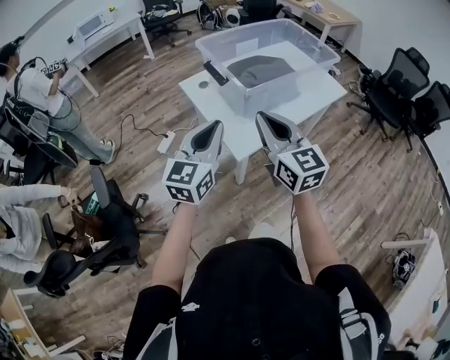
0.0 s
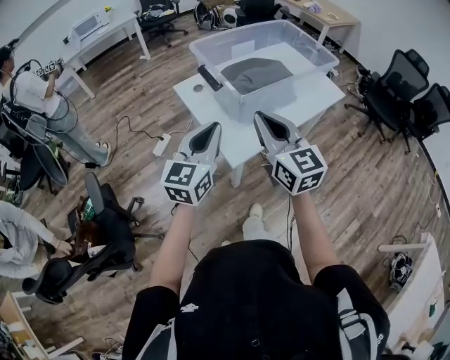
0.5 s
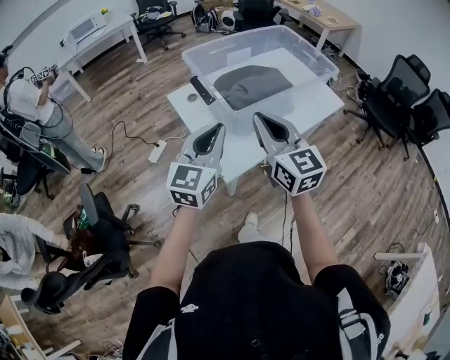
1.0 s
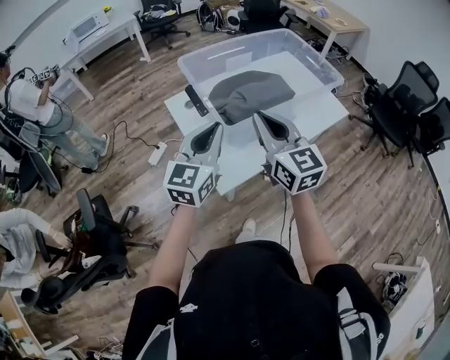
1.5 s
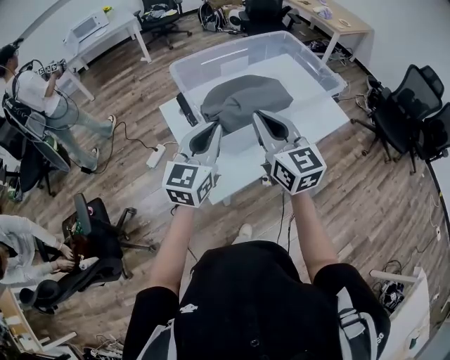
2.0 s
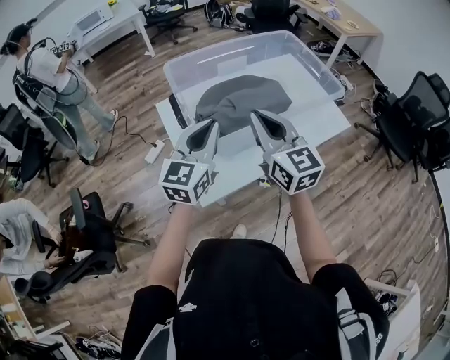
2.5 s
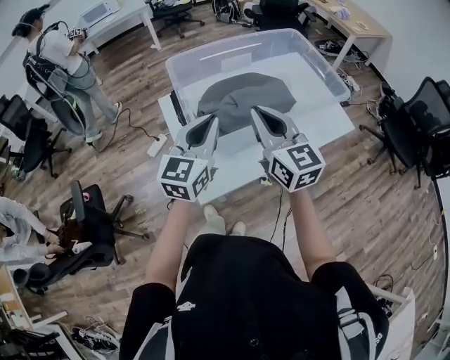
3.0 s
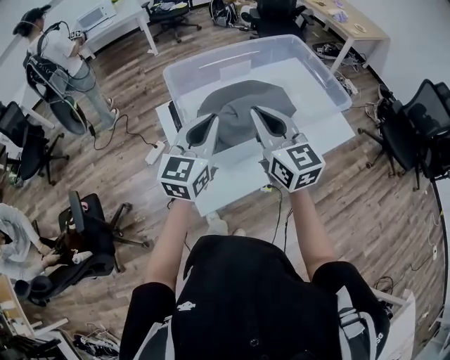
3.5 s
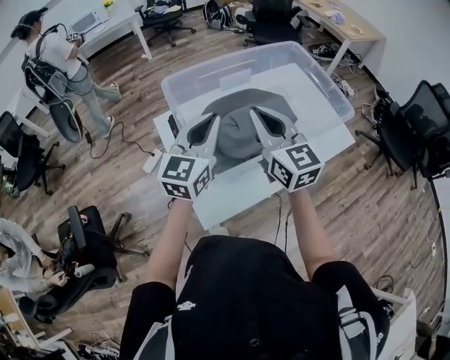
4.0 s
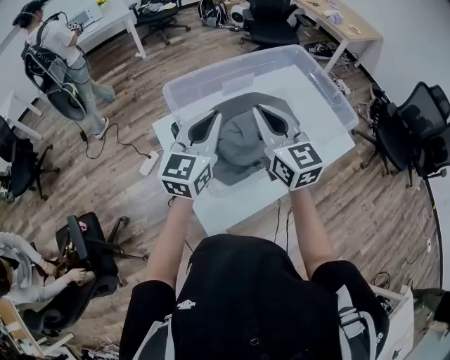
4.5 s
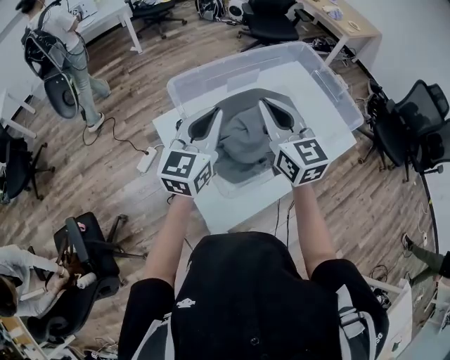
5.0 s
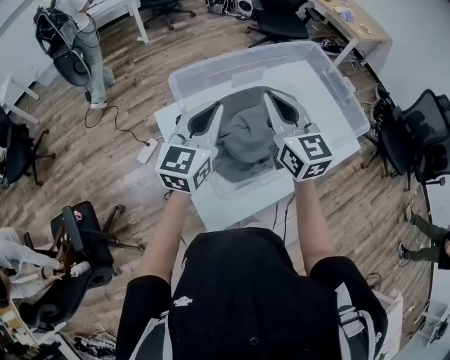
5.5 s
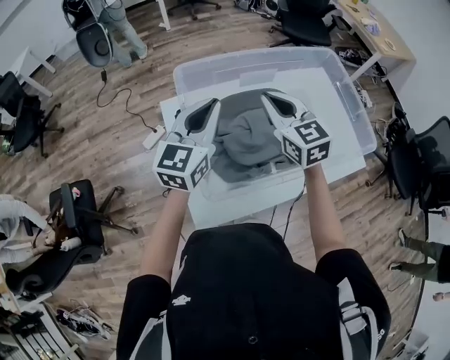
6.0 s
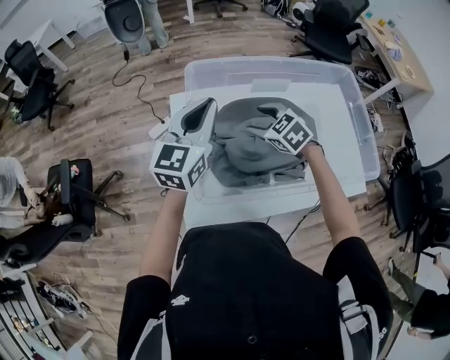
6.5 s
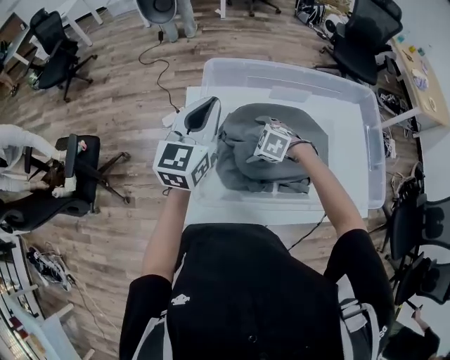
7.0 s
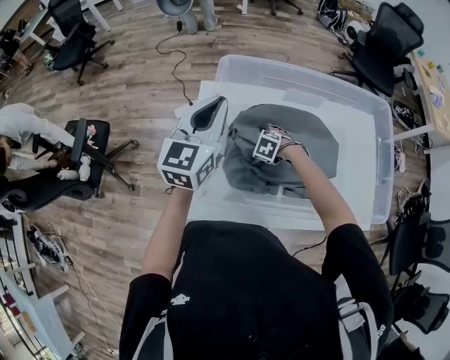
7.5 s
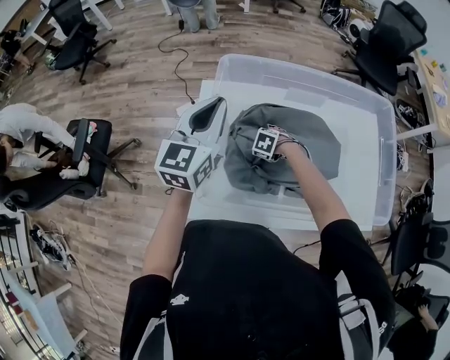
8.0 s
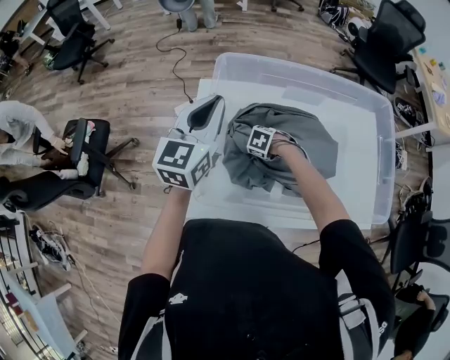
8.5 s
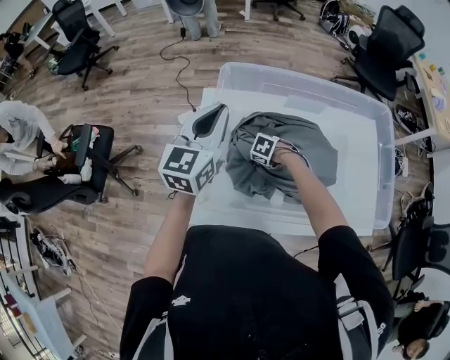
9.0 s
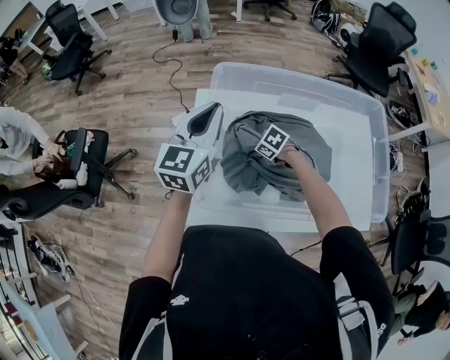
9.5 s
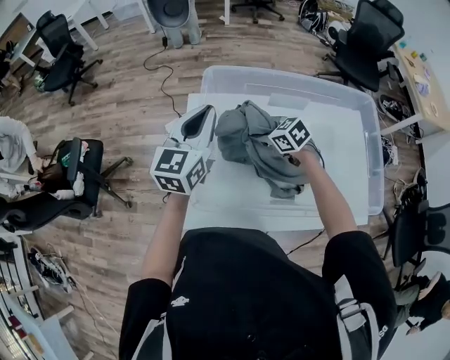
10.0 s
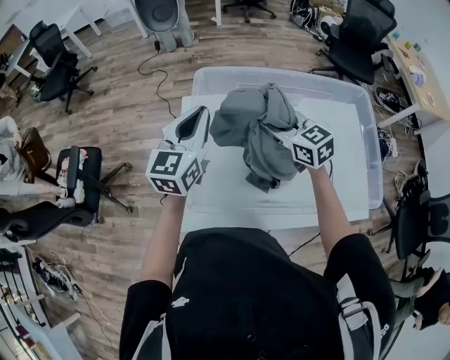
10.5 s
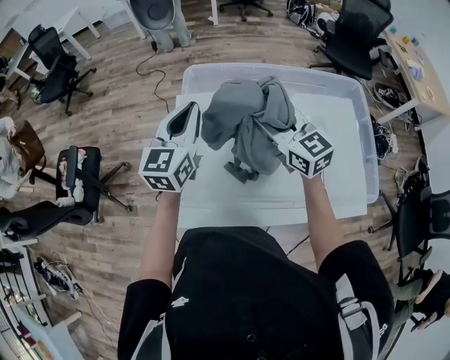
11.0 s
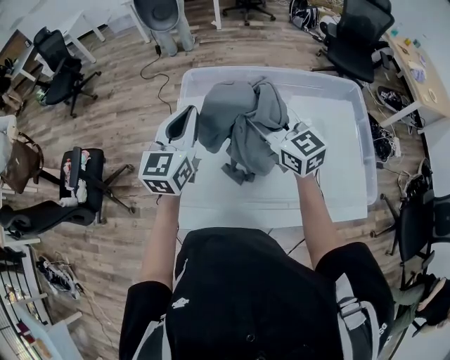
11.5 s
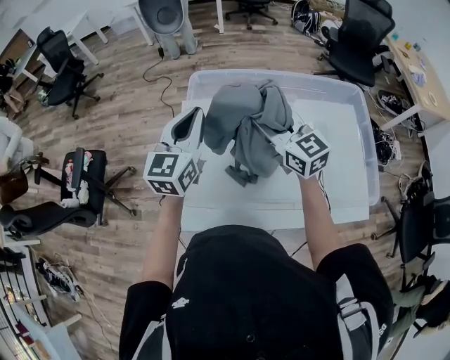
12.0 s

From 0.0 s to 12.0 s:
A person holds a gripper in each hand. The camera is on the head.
From 0.0 s to 2.0 s: Both grippers travel together forward and to the right, about 25 cm.
From 2.0 s to 4.0 s: The grippers both shift forward by some 15 cm.
From 4.0 s to 6.0 s: The right gripper shifts about 15 cm forward and downward, while the left gripper moves forward, approximately 10 cm.
From 6.0 s to 8.0 s: The right gripper shifts about 40 cm downward, tilts its fingers roughly 60 degrees downward, and opens up. The left gripper ends up roughly 5 cm from where it was, and swivels roughly 20 degrees.
From 8.0 s to 10.0 s: The right gripper moves upward, roughly 20 cm, tips its fingers upward by roughly 30 degrees, and closes its fingers.
From 10.0 s to 12.0 s: The right gripper shifts about 20 cm upward, and tips its fingers upward by about 40 degrees.

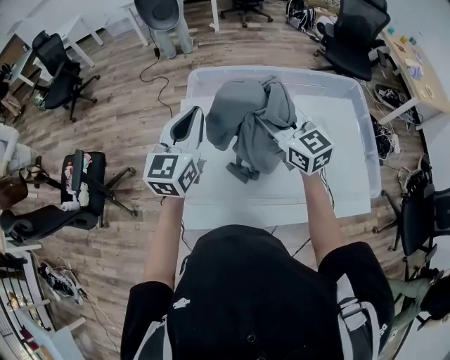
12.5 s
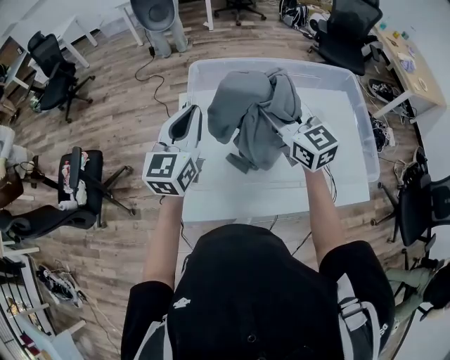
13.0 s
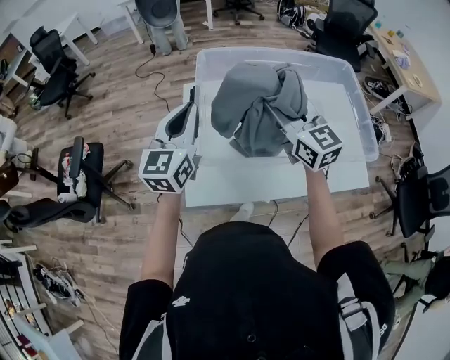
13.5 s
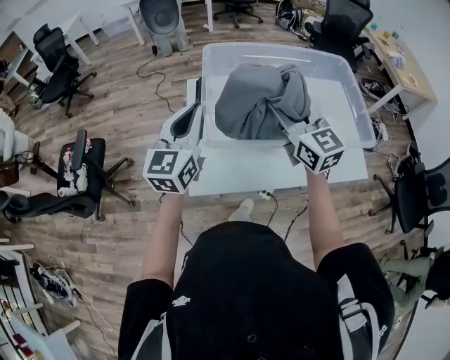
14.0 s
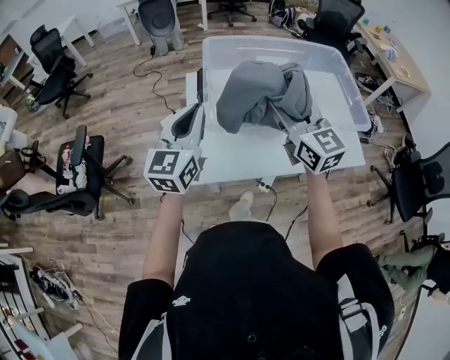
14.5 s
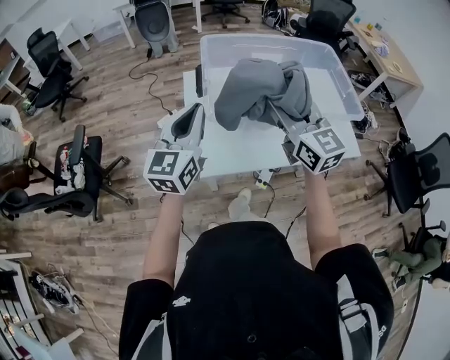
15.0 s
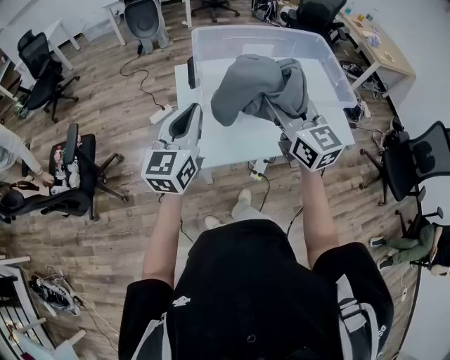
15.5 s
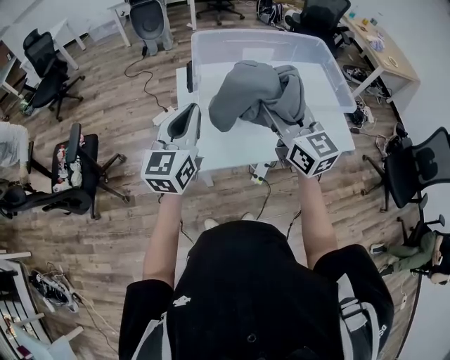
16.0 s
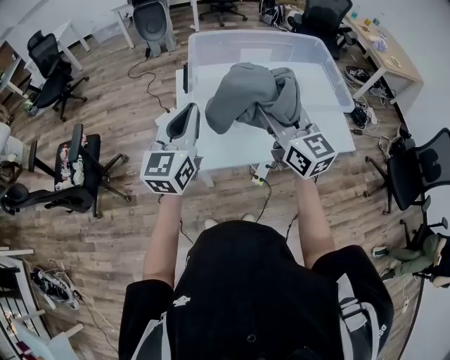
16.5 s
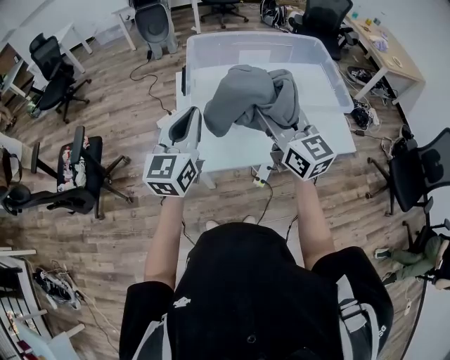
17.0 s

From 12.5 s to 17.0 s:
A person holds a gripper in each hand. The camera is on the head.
From 12.5 s to 14.5 s: The right gripper heads backward, covering roughly 20 cm. Meanwhile the left gripper goes about 20 cm backward and to the left.
From 14.5 s to 17.0 s: The grippers both shift backward by some 5 cm.

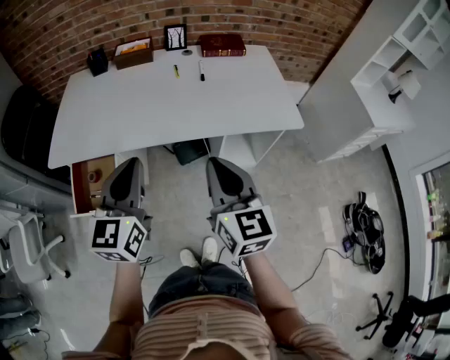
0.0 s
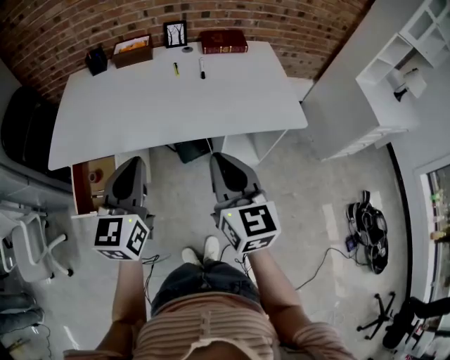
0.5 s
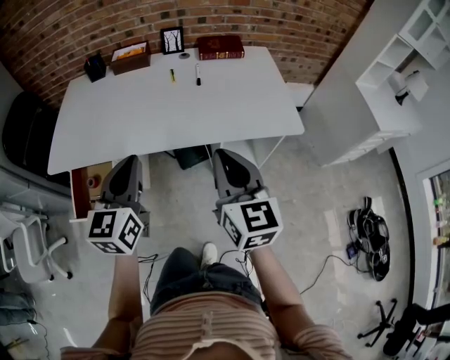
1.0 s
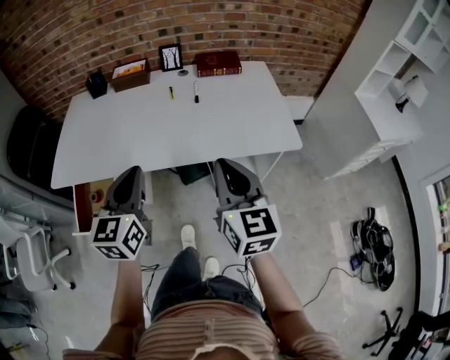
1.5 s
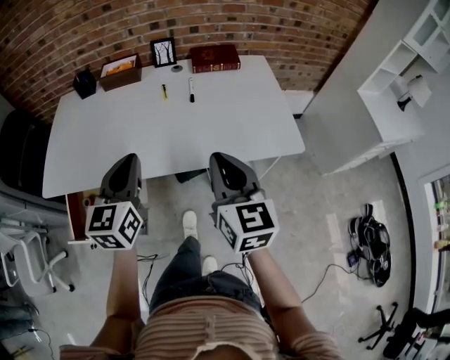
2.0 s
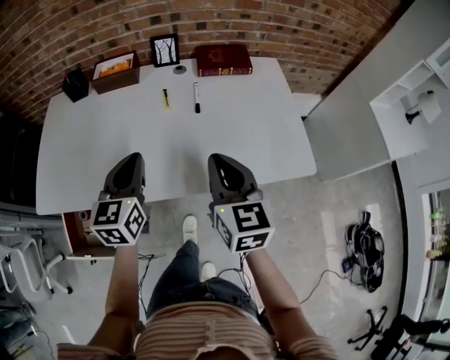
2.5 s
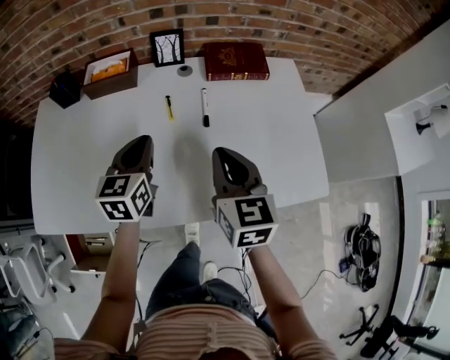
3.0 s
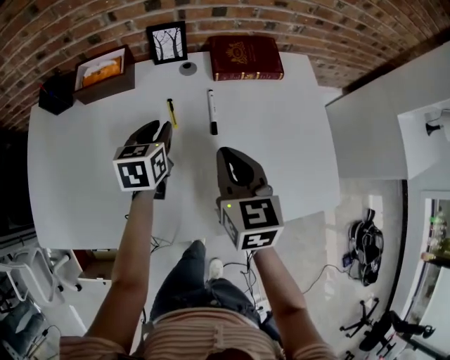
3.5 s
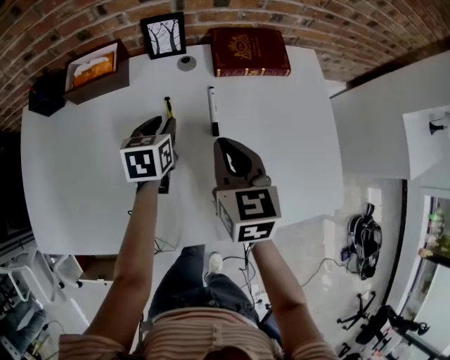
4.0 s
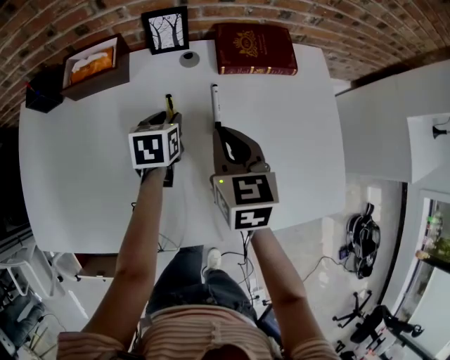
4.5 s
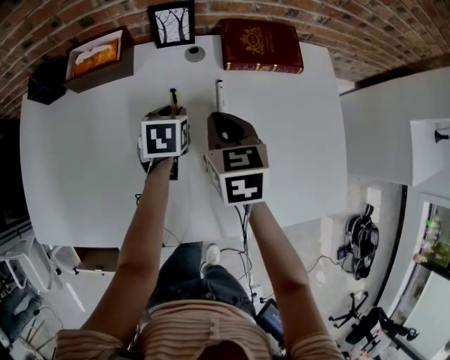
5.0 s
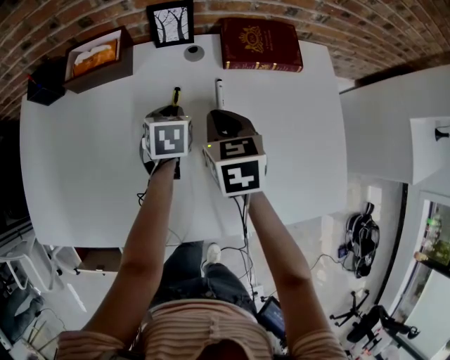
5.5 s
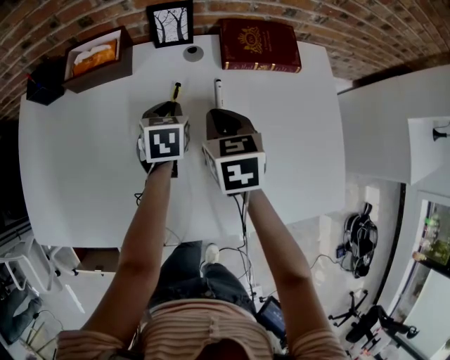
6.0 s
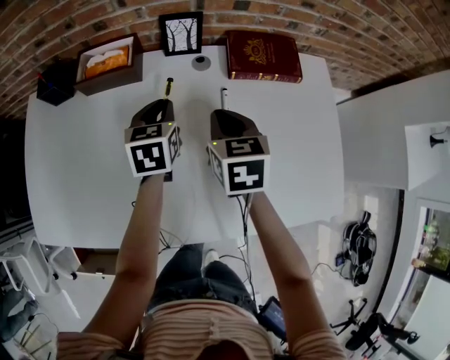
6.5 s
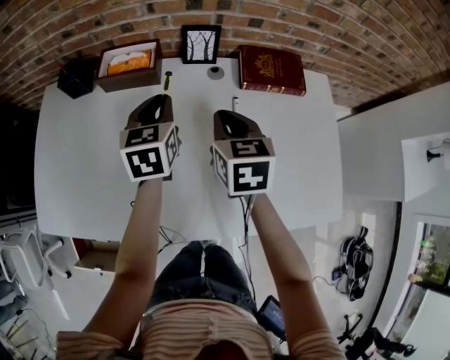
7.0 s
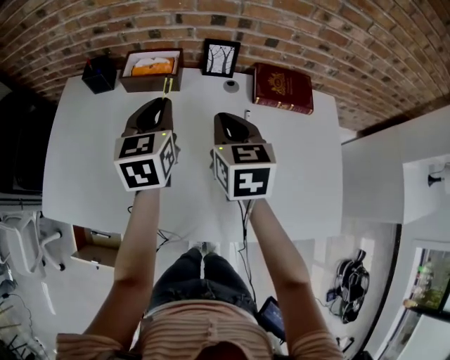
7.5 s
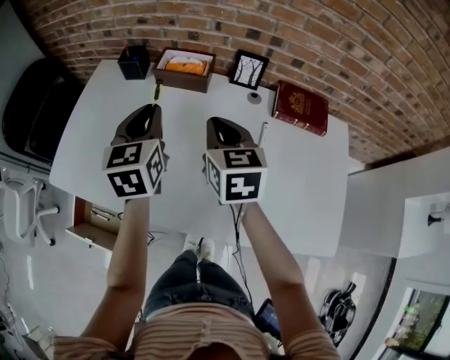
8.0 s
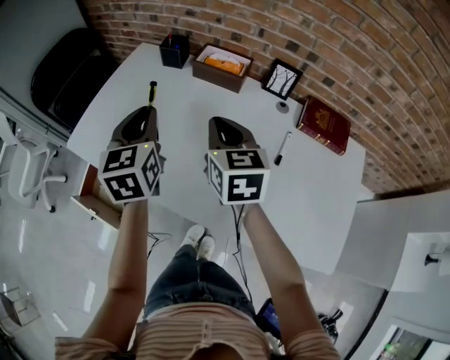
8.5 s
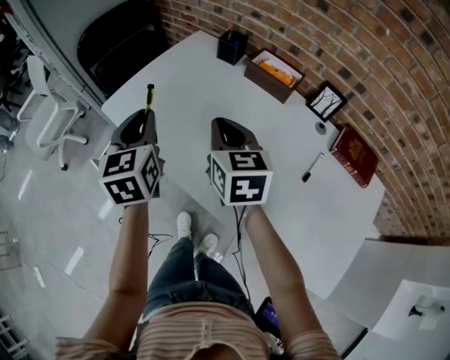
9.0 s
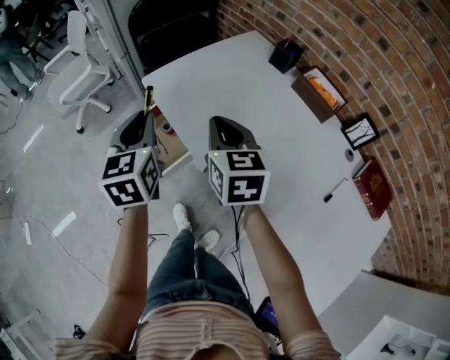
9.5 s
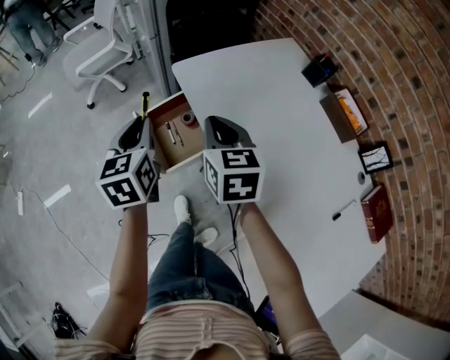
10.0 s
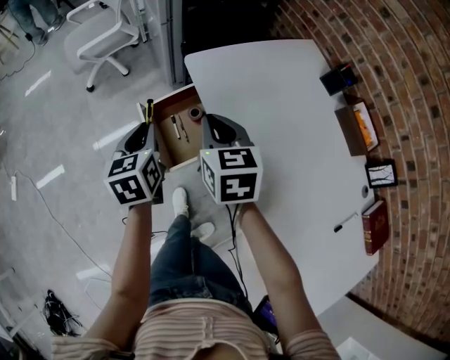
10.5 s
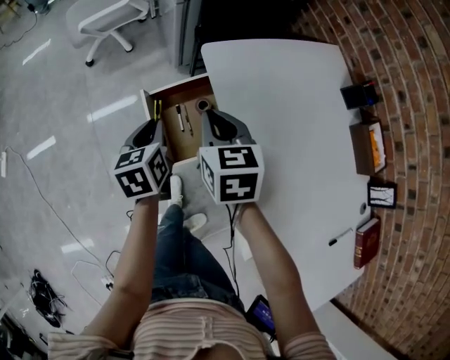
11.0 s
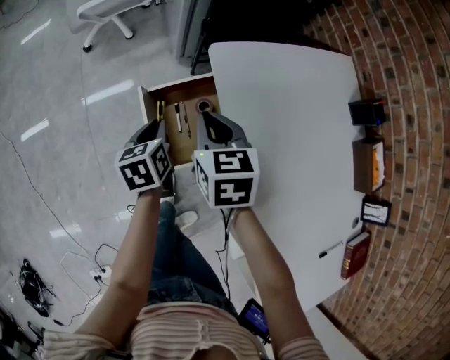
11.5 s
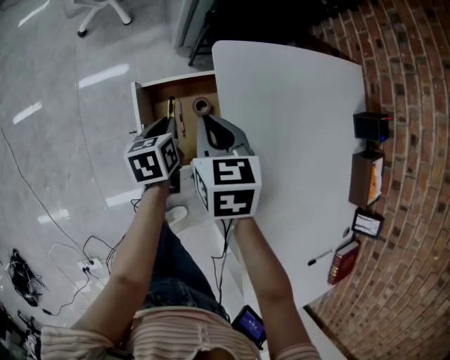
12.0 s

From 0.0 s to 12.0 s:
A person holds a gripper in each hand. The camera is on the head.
From 0.0 s to 2.0 s: The right gripper goes some 15 cm forward and to the right, while the left gripper moves forward, roughly 15 cm.
From 2.0 s to 4.0 s: The right gripper is displaced forward by about 35 cm, and turns by roughly 20 degrees. Meanwhile the left gripper heads forward and downward, covering approximately 50 cm, angles its fingers downward, by about 30 degrees, and opens.
From 4.0 s to 6.0 s: The right gripper heads forward and downward, covering about 10 cm.
From 6.0 s to 8.0 s: The left gripper moves upward, to the left and backward, roughly 30 cm, and angles its fingers upward, by roughly 30 degrees, while the right gripper goes some 20 cm to the left and upward, and swivels approximately 20 degrees.
From 8.0 s to 10.0 s: Both grippers are carried some 40 cm. The left gripper swivels roughly 50 degrees; the right gripper changes its angle by roughly 50 degrees.
From 10.0 s to 12.0 s: The right gripper goes roughly 20 cm downward, forward and to the left, and rotates about 20 degrees. Meanwhile the left gripper travels downward by roughly 25 cm, and turns by some 40 degrees.
